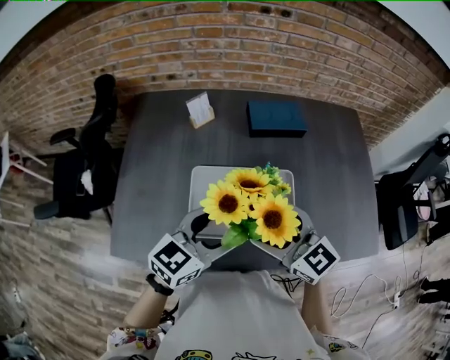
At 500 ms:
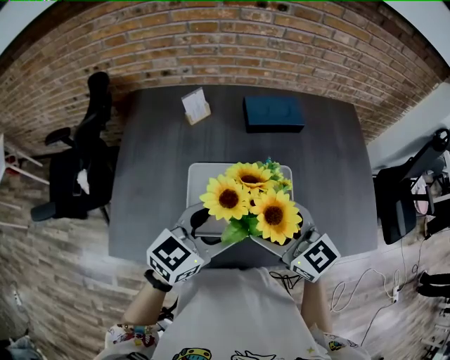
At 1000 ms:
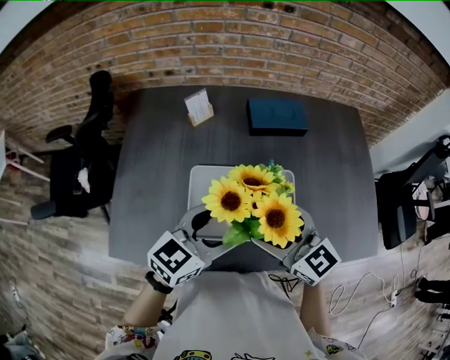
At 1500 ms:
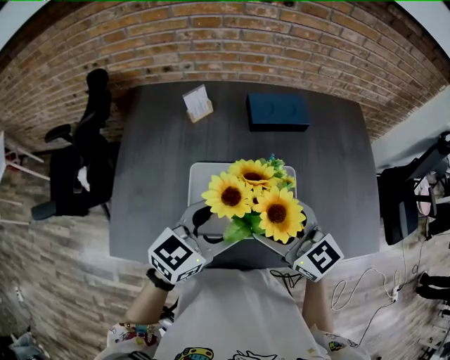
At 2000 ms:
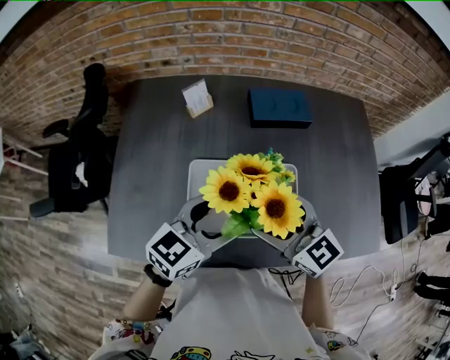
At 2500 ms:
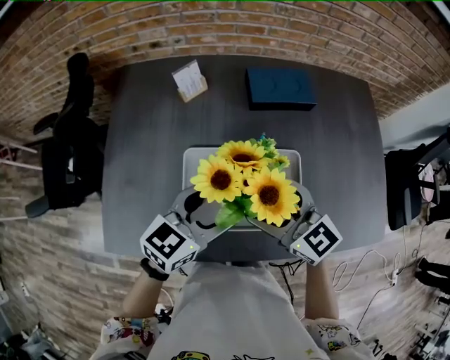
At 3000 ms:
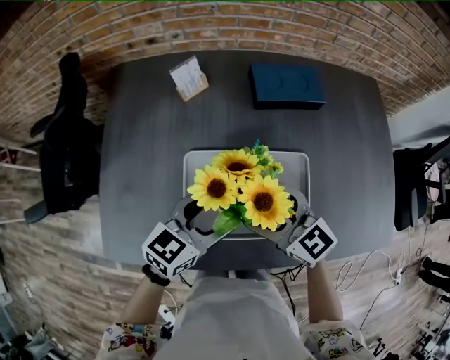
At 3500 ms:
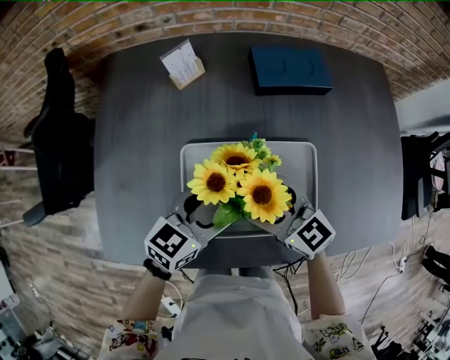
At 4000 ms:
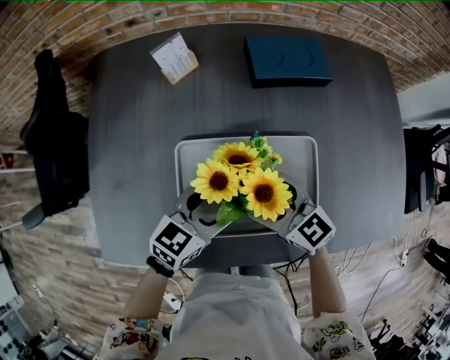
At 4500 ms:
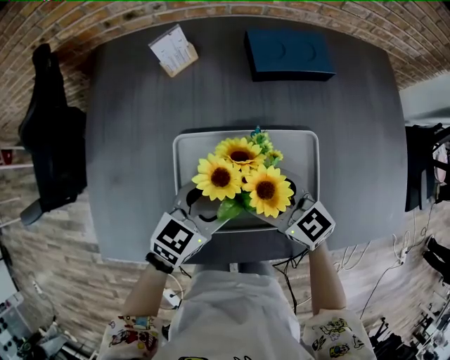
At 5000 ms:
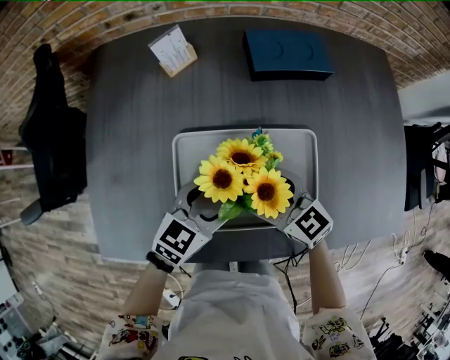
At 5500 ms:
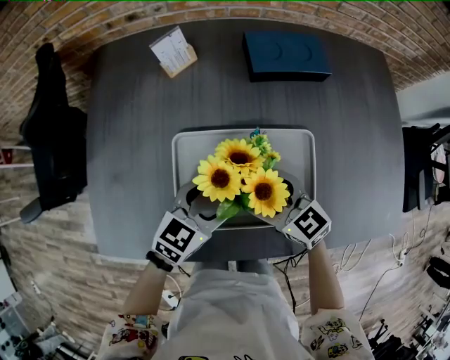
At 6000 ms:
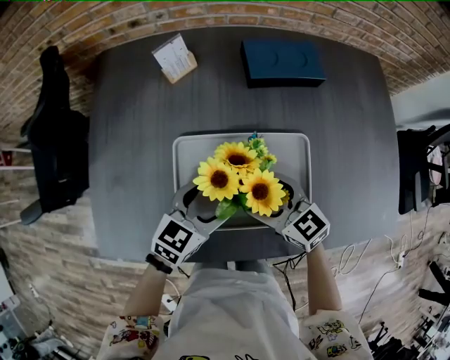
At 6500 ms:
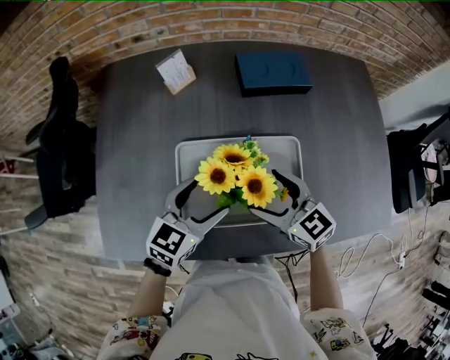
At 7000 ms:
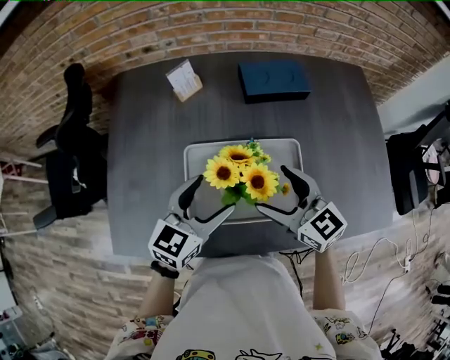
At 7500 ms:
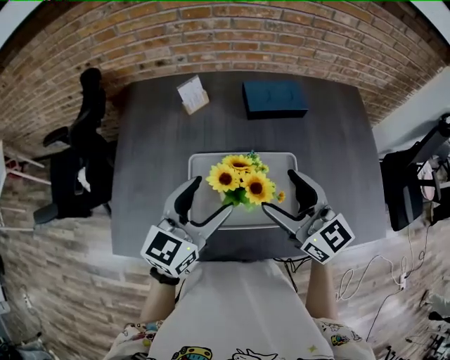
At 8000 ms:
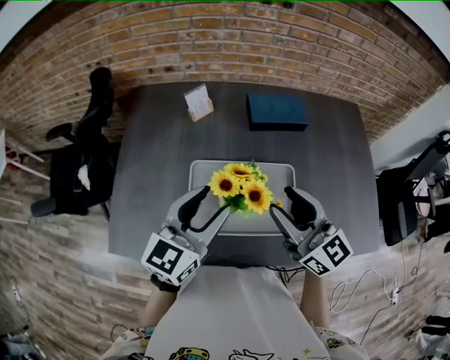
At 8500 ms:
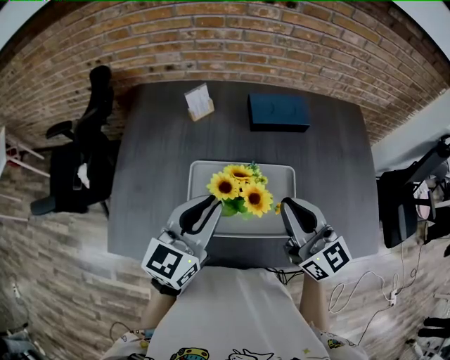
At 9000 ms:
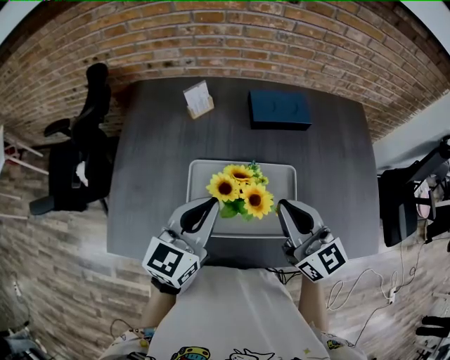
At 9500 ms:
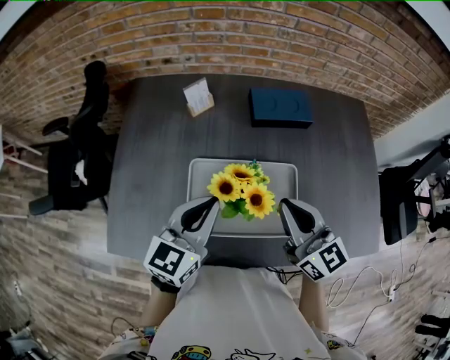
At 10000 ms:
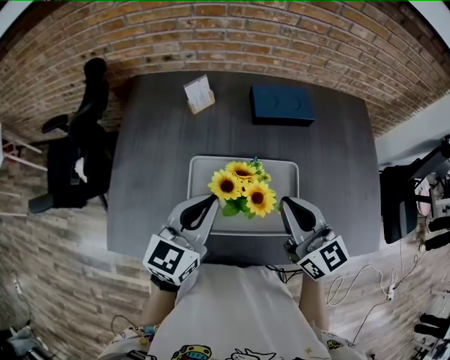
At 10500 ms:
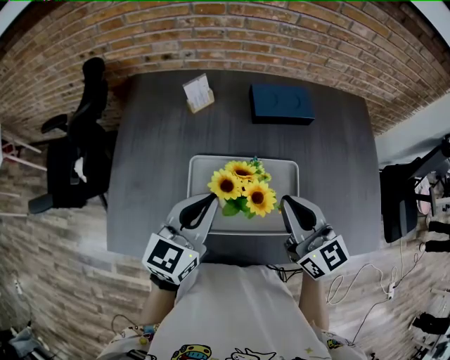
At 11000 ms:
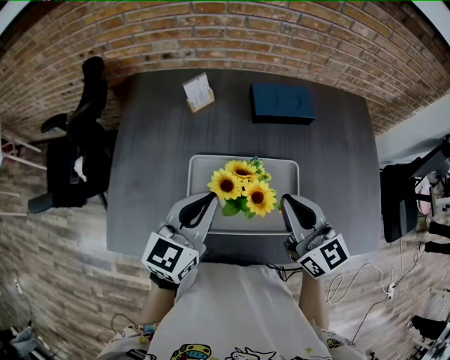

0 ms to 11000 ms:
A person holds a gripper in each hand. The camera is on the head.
0 ms to 2000 ms: The grippers stay close to where they were, moving slightly.
2000 ms to 3500 ms: Both grippers travel together downward, approximately 15 cm.
3500 ms to 5500 ms: The right gripper shifts some 5 cm downward.
5500 ms to 7500 ms: The grippers both shift upward by roughly 20 cm. The right gripper changes its angle by approximately 20 degrees. Meanwhile the left gripper rotates about 30 degrees.
7500 ms to 9000 ms: The left gripper closes. Meanwhile the right gripper closes.
9000 ms to 11000 ms: The grippers make only small movements.

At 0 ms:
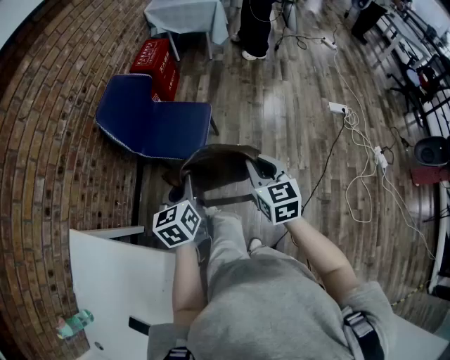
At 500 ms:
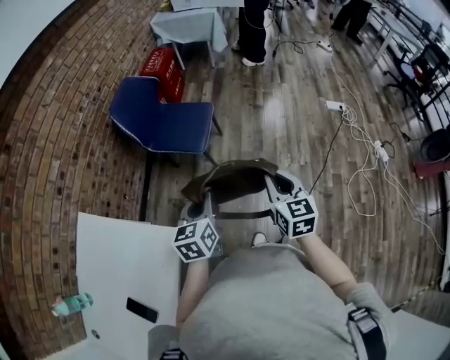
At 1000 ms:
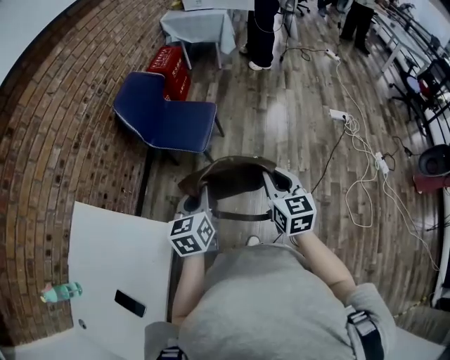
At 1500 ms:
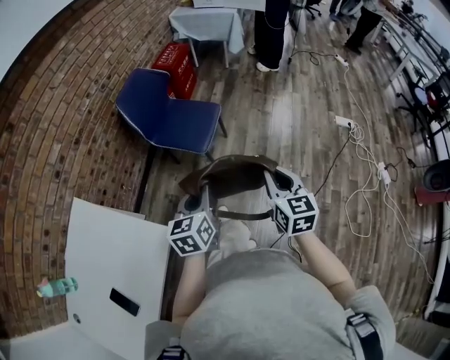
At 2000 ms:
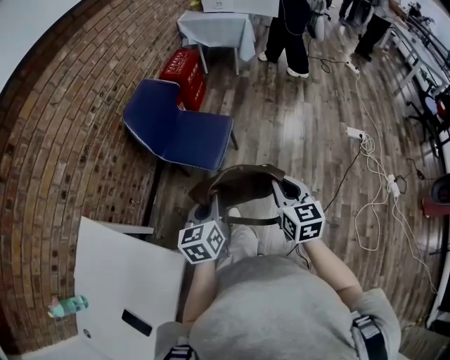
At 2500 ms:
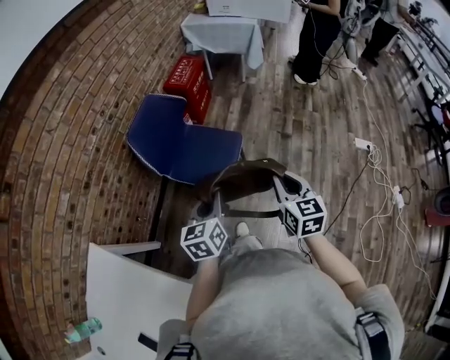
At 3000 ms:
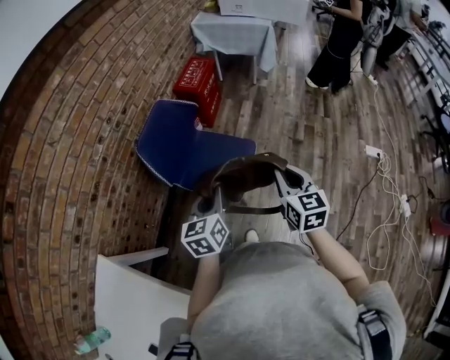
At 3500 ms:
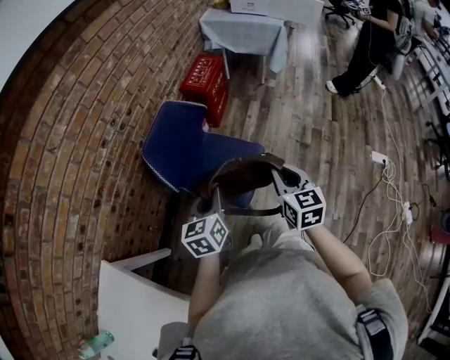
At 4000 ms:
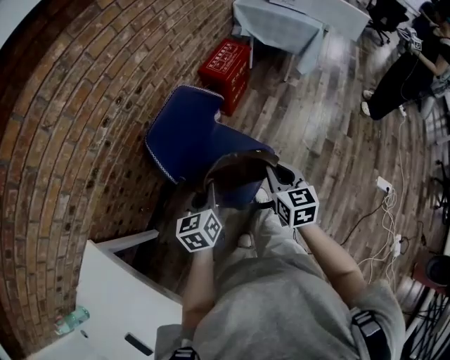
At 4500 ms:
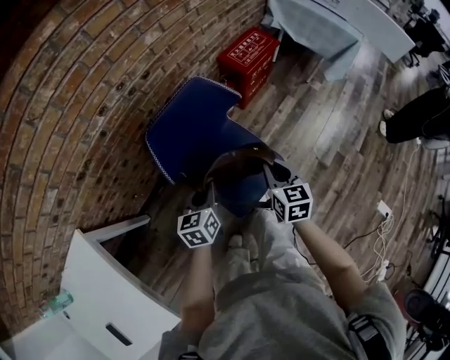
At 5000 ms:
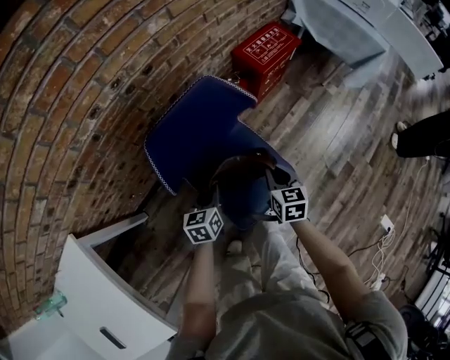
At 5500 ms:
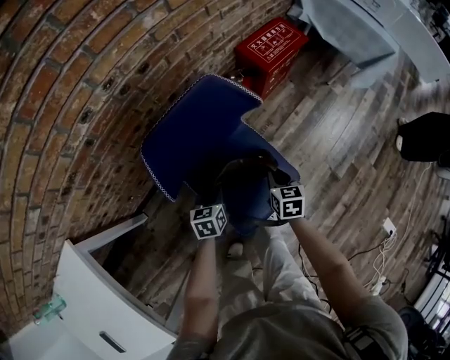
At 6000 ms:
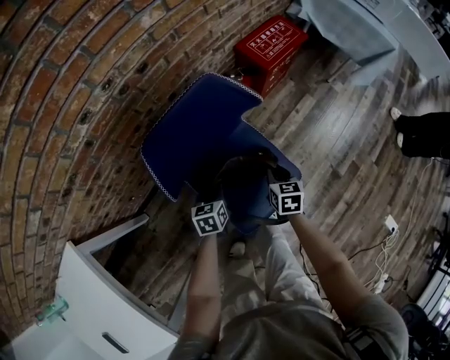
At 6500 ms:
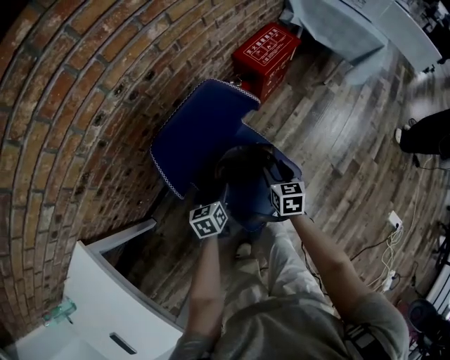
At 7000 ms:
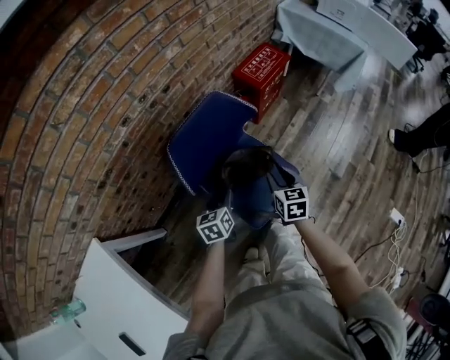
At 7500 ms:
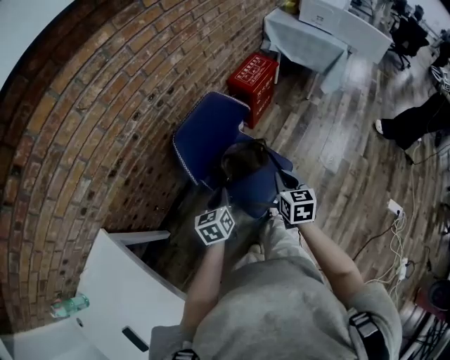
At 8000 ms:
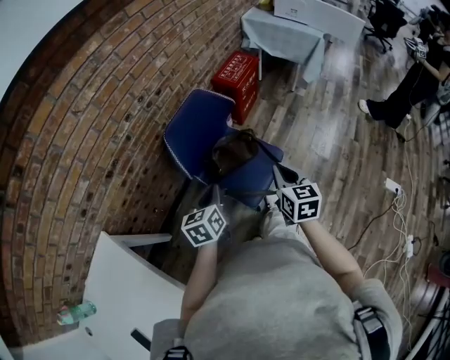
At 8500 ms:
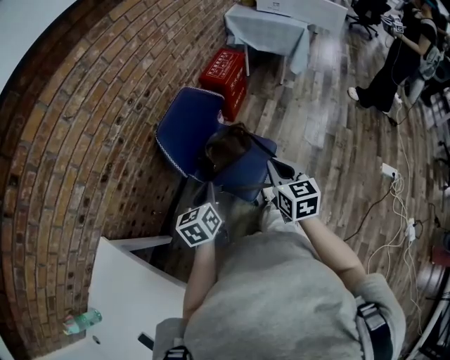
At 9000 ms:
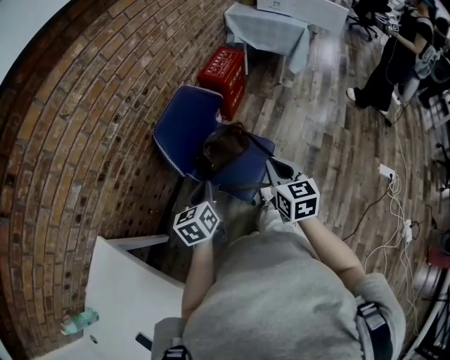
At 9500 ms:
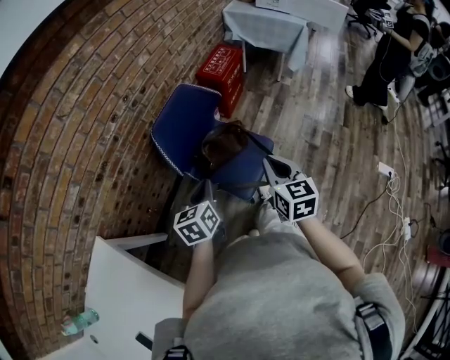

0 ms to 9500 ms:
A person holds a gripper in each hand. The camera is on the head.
0 ms to 2000 ms: The right gripper goes backward and returns, some 15 cm each way. Meanwhile the left gripper moves roughly 15 cm backward and comes back.
2000 ms to 4000 ms: Both grippers move forward, approximately 35 cm.
4000 ms to 5500 ms: The grippers both shift downward and forward by some 30 cm. The right gripper rotates approximately 20 degrees.
5500 ms to 7500 ms: Both grippers travel together upward and backward, approximately 25 cm. The left gripper opens and closes again. The right gripper opens and closes again.
7500 ms to 9500 ms: Both grippers move upward and backward, some 10 cm.

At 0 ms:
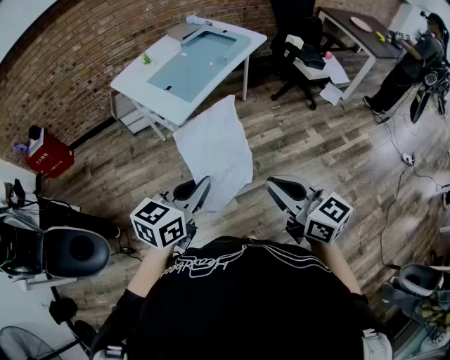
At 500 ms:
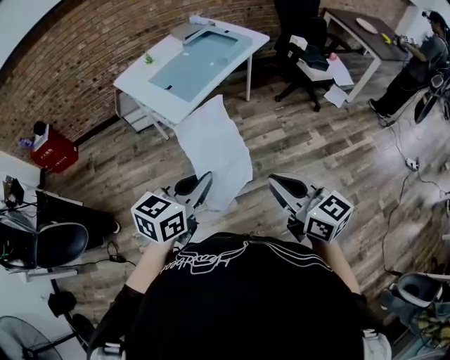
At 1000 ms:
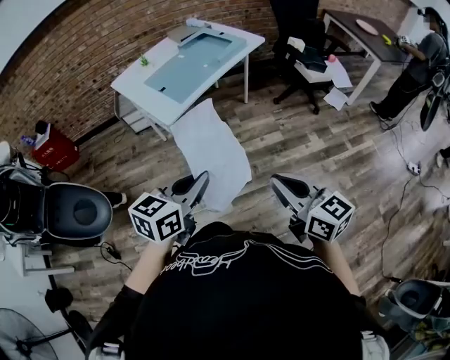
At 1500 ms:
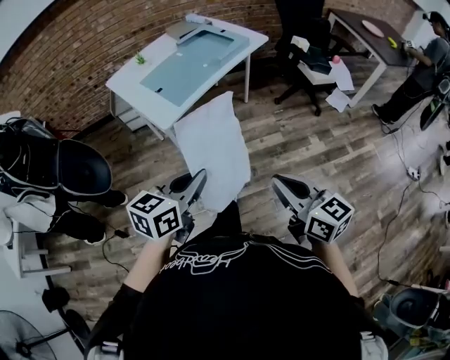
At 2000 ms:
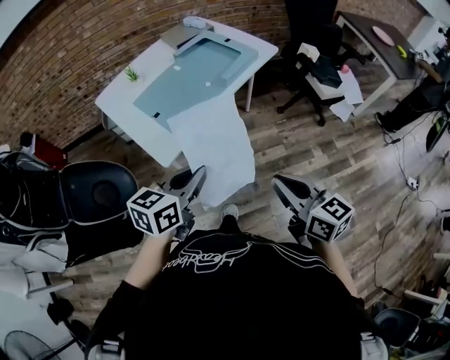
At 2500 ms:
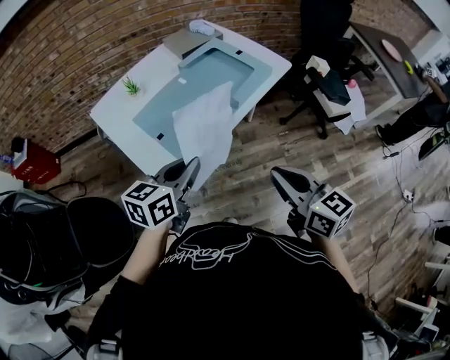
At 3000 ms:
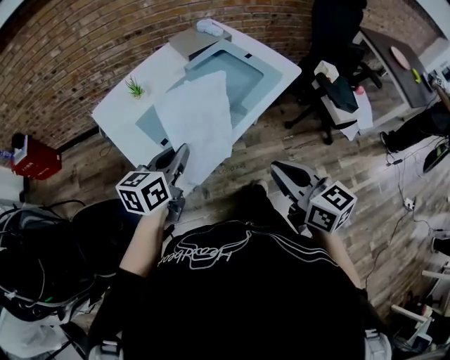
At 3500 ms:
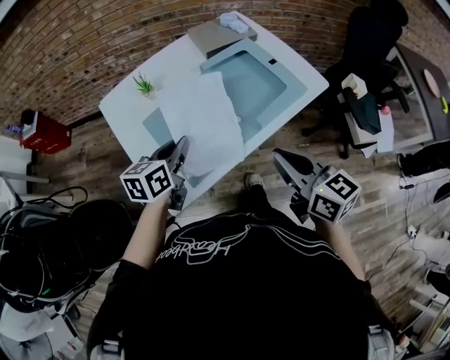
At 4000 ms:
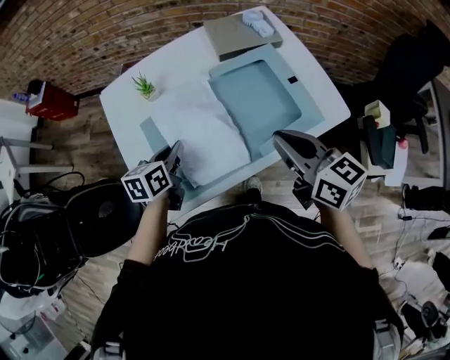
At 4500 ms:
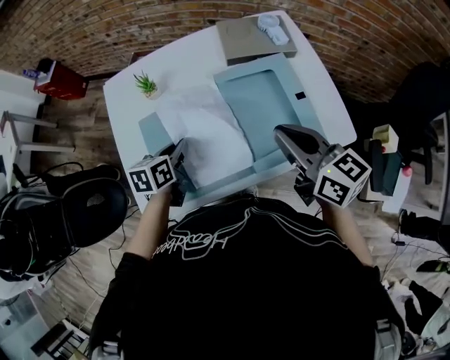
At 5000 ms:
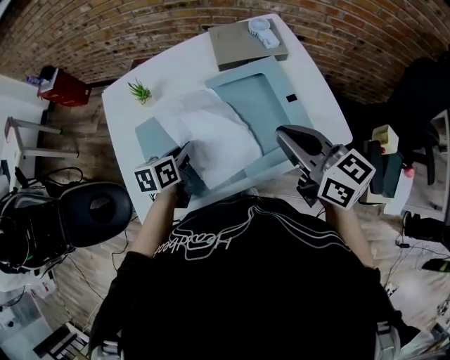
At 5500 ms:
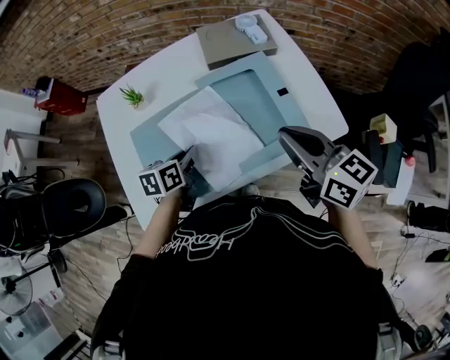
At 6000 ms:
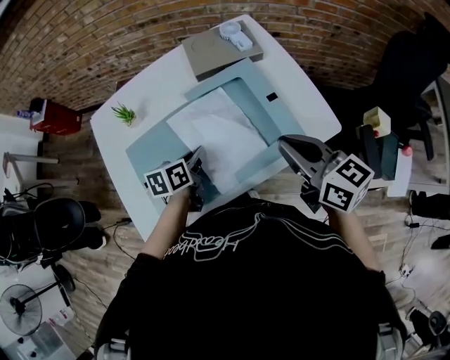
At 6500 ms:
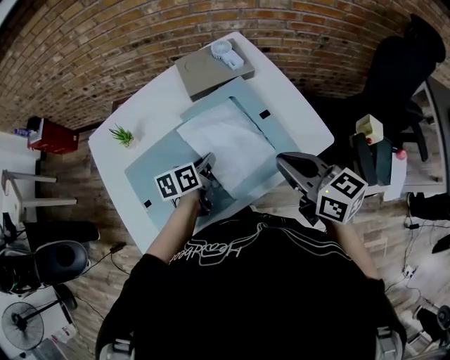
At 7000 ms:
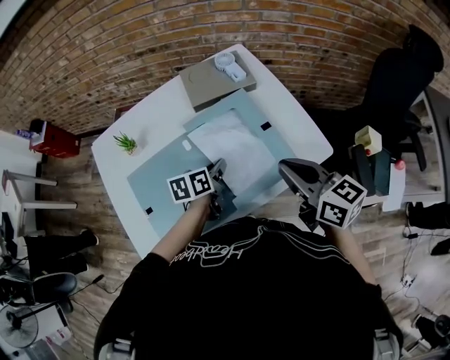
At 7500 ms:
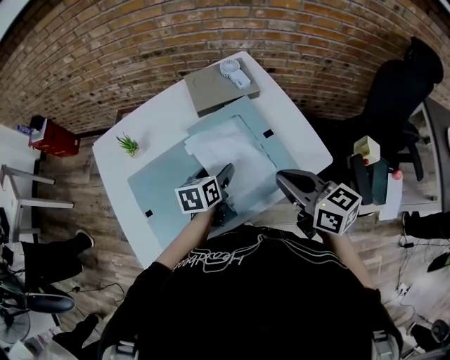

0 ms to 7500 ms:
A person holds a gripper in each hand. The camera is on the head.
0 ms to 2000 ms: The two grippers go some 25 cm forward.
2000 ms to 4000 ms: The left gripper shifts by about 40 cm, and swivels about 40 degrees, while the right gripper shifts by about 50 cm, and swivels approximately 30 degrees.
4000 ms to 5500 ms: Both grippers travel together to the right, some 10 cm.
5500 ms to 7500 ms: The left gripper heads to the right and forward, covering roughly 15 cm, and opens.
